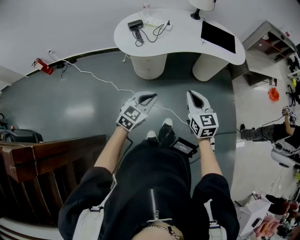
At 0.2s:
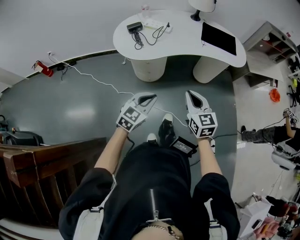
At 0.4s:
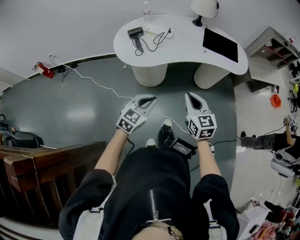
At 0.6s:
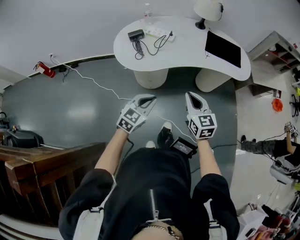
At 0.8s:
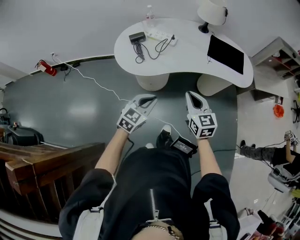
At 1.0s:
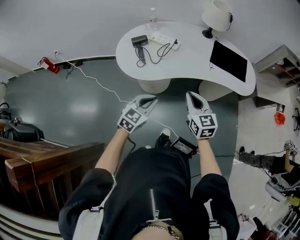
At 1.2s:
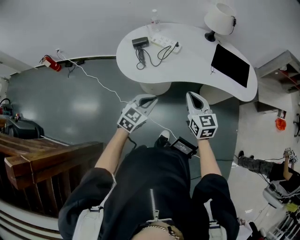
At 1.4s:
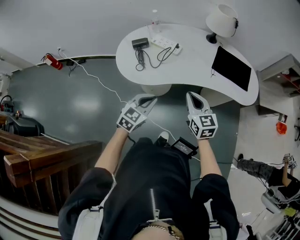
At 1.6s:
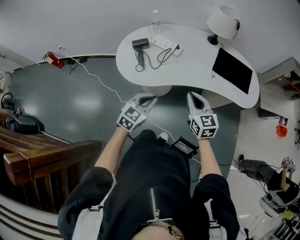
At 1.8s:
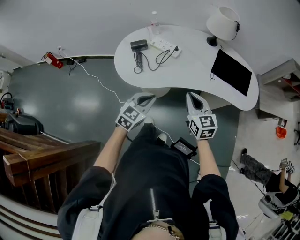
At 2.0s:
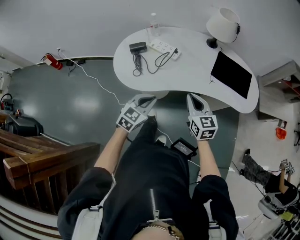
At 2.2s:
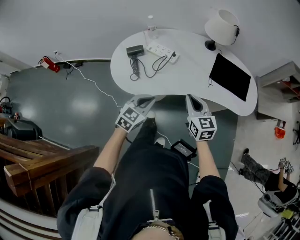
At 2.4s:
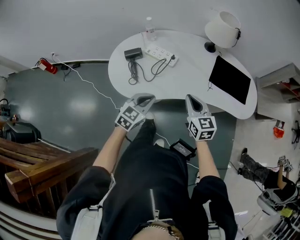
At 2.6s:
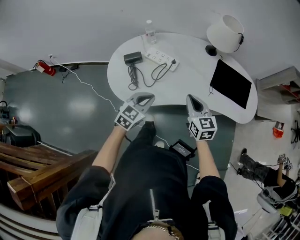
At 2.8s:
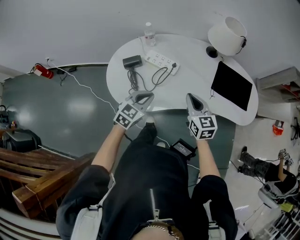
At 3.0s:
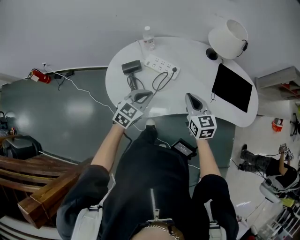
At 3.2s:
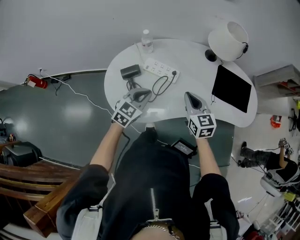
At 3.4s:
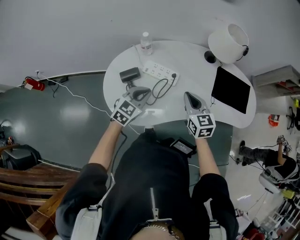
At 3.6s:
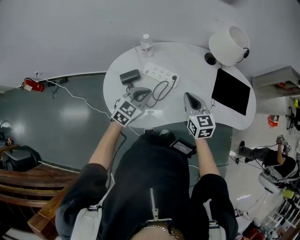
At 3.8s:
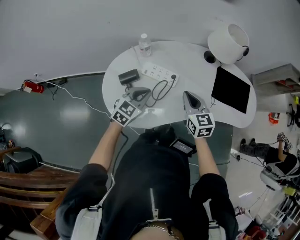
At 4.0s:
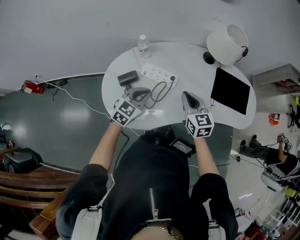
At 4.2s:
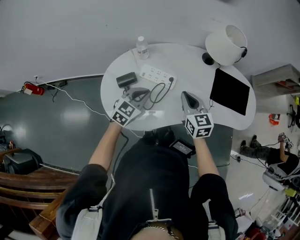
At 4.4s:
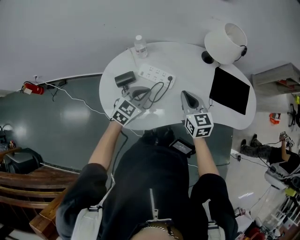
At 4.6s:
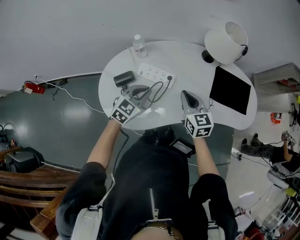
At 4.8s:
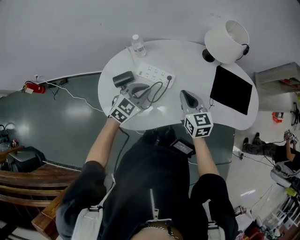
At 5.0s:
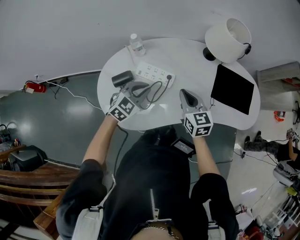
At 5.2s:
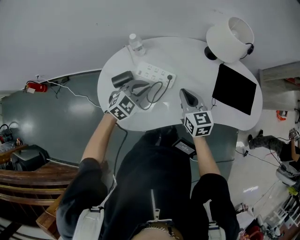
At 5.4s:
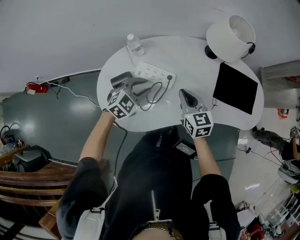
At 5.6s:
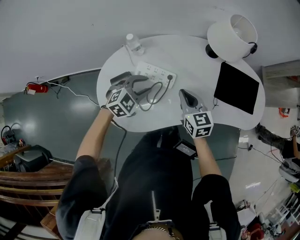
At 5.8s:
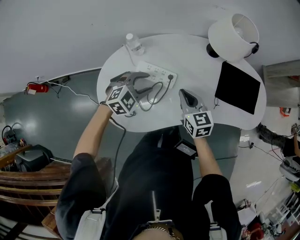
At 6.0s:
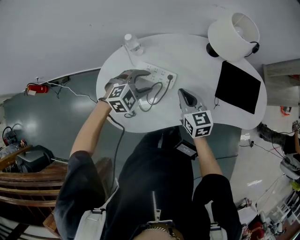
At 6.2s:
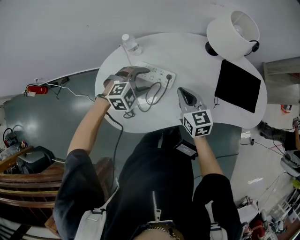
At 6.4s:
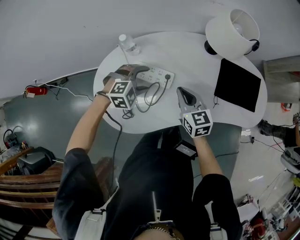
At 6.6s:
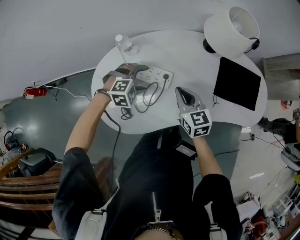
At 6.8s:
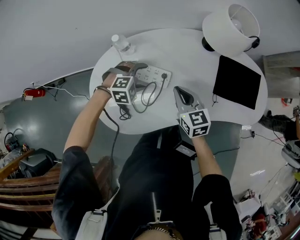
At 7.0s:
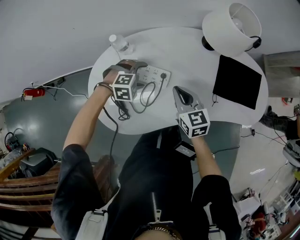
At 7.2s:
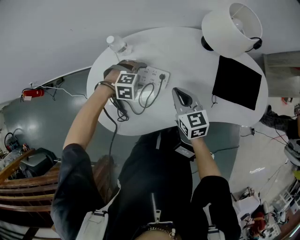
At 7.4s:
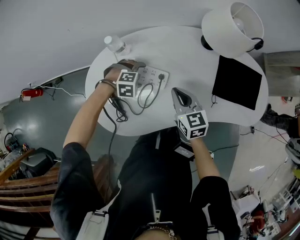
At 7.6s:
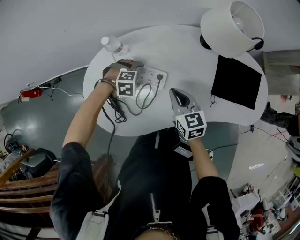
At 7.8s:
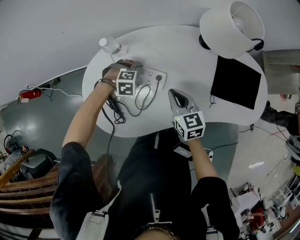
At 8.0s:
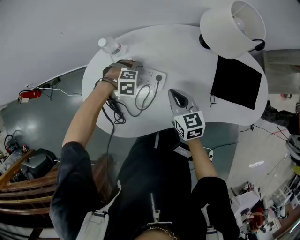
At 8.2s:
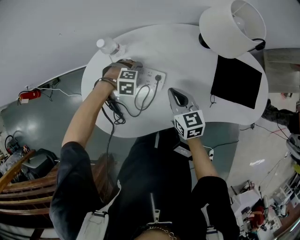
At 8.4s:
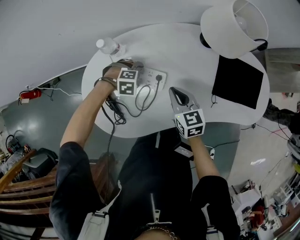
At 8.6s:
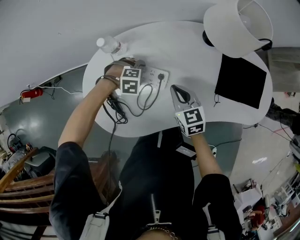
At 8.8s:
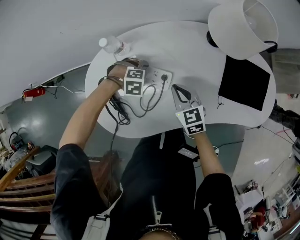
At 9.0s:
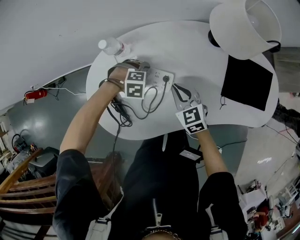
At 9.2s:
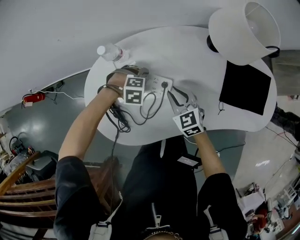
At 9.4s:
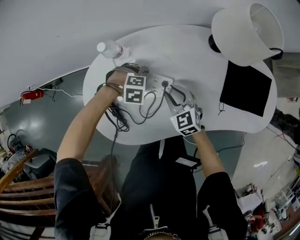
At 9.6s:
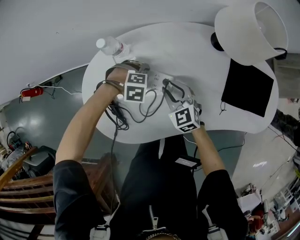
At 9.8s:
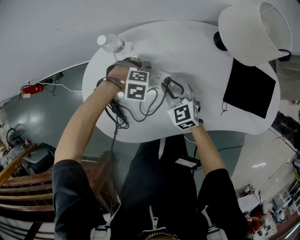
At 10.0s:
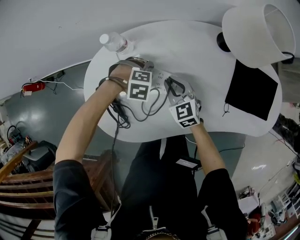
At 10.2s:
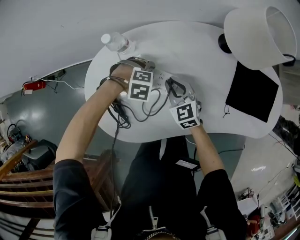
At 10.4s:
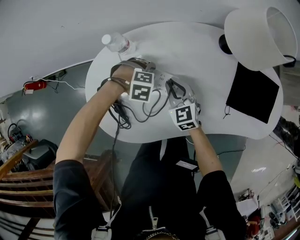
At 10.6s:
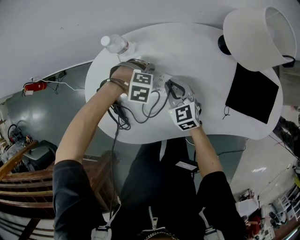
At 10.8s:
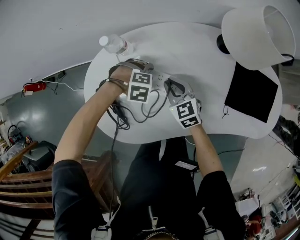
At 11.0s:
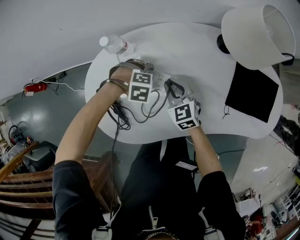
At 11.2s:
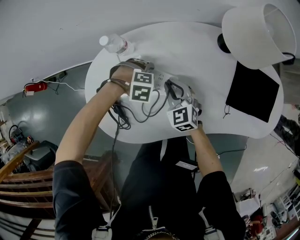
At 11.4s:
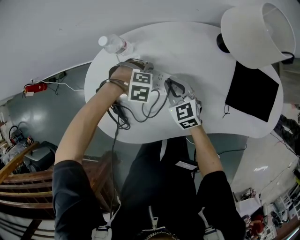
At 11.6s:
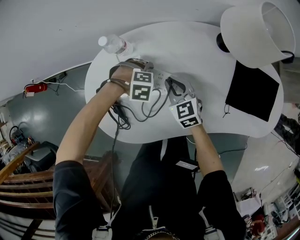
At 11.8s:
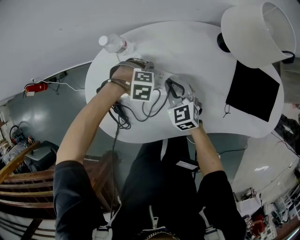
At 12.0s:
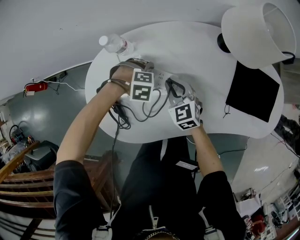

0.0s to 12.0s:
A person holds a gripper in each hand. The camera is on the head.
0.0s to 1.6s: Both grippers move forward, about 25 cm.
1.6s to 3.0s: Both grippers move forward, roughly 20 cm.
3.0s to 4.4s: Both grippers move forward, roughly 10 cm.
4.4s to 6.0s: The left gripper heads forward, covering approximately 5 cm, rotates roughly 40 degrees, and opens its fingers. Meanwhile the right gripper shifts by about 5 cm.
6.0s to 7.6s: The right gripper moves some 5 cm, while the left gripper moves downward, some 15 cm, and turns by some 30 degrees.
7.6s to 9.0s: The right gripper is displaced downward by some 5 cm.
9.0s to 10.4s: The right gripper ends up some 5 cm from where it was.
10.4s to 12.0s: The grippers make only small movements.

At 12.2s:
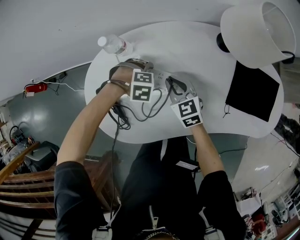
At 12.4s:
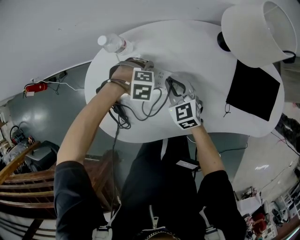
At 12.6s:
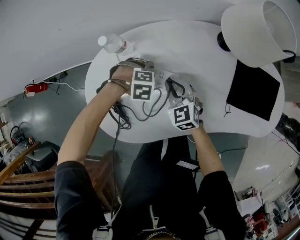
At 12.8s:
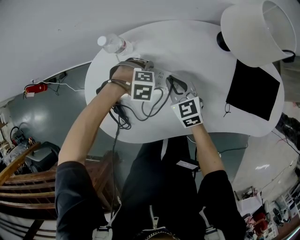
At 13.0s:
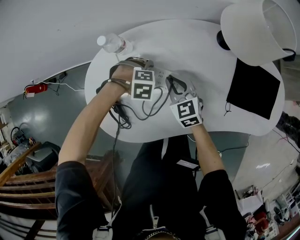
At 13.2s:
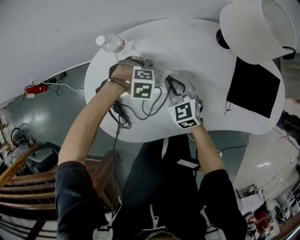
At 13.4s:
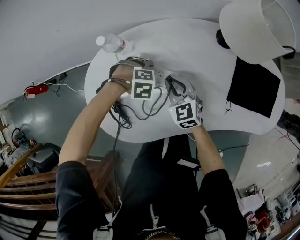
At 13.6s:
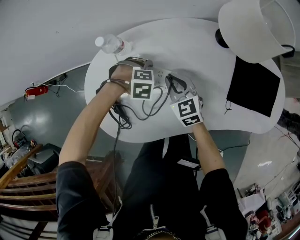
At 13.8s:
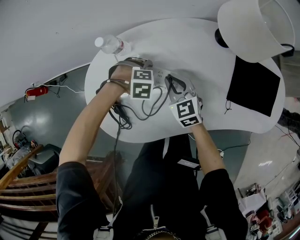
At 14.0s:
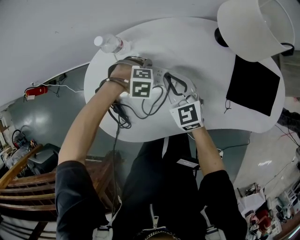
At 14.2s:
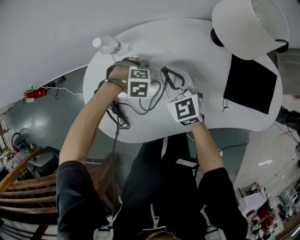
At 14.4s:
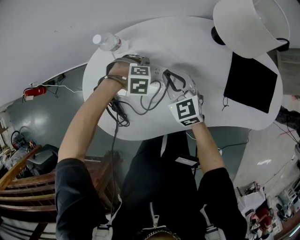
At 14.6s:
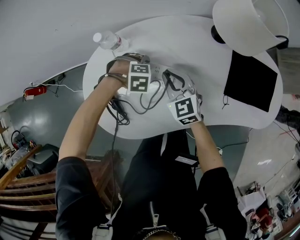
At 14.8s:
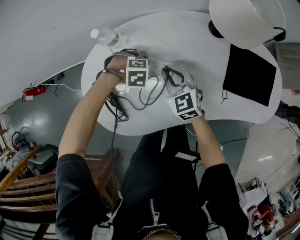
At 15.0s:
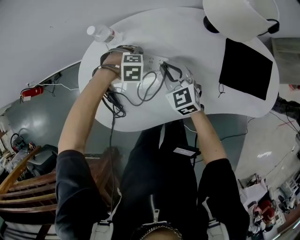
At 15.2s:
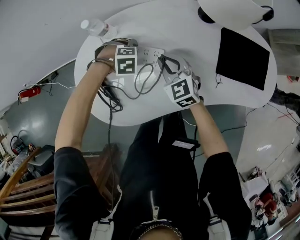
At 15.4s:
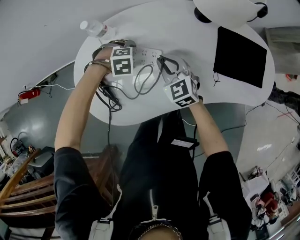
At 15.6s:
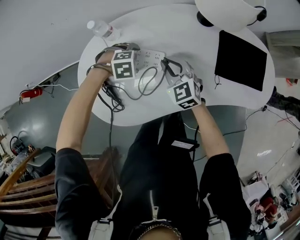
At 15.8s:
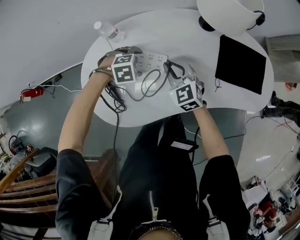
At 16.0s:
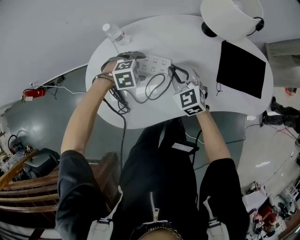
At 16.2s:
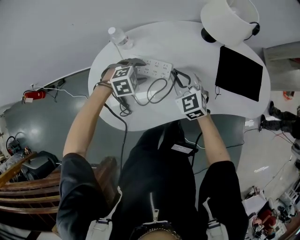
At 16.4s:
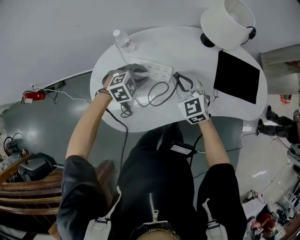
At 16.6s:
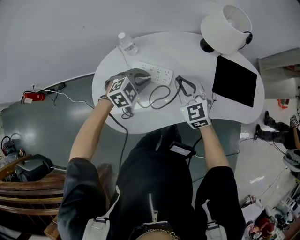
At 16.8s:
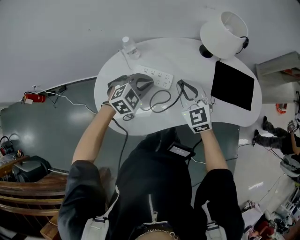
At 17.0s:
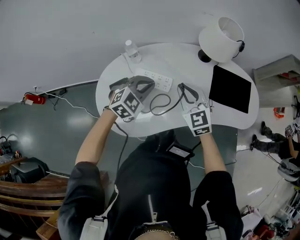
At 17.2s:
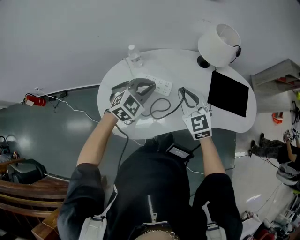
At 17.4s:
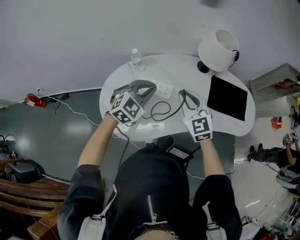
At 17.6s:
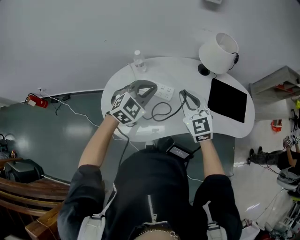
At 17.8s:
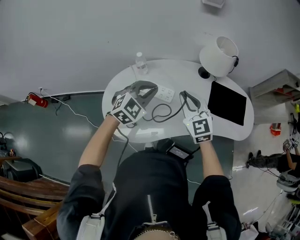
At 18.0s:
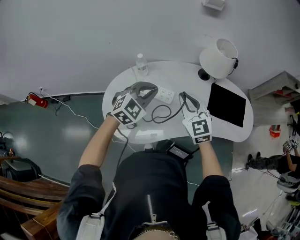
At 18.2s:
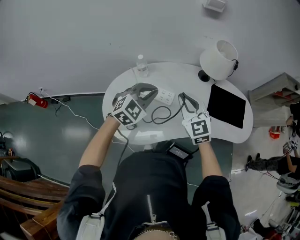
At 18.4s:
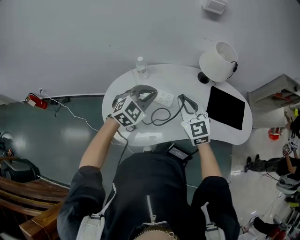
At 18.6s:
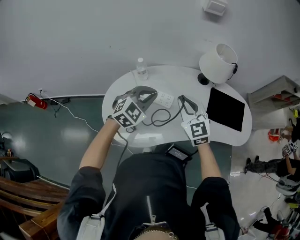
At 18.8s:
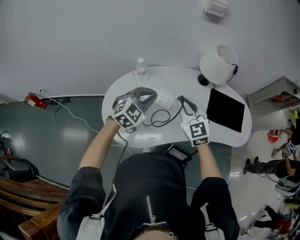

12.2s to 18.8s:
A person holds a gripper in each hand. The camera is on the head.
12.2s to 13.8s: The grippers stay close to where they were, moving slightly.
13.8s to 15.4s: The right gripper shifts by about 5 cm.
15.4s to 17.2s: The grippers both shift upward by some 20 cm. The left gripper angles its fingers upward, by roughly 50 degrees, and closes its fingers.
17.2s to 18.8s: The grippers make only small movements.

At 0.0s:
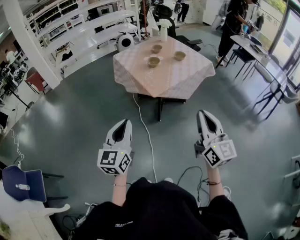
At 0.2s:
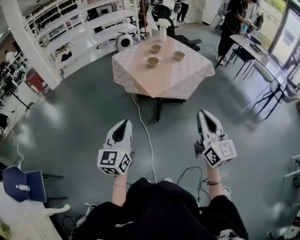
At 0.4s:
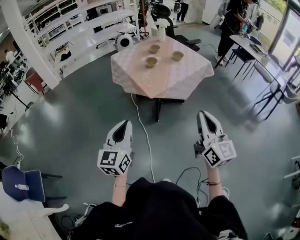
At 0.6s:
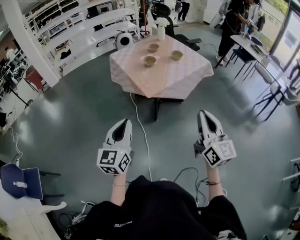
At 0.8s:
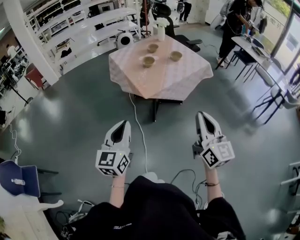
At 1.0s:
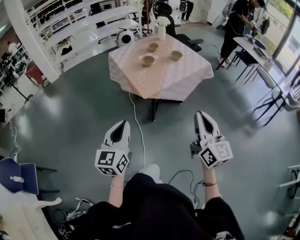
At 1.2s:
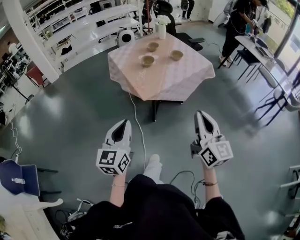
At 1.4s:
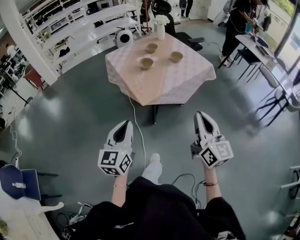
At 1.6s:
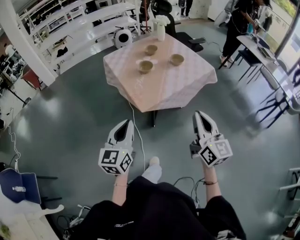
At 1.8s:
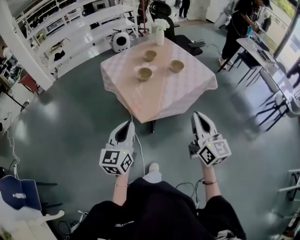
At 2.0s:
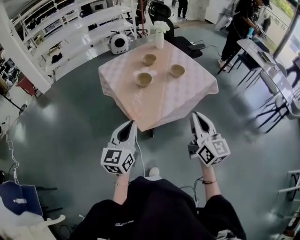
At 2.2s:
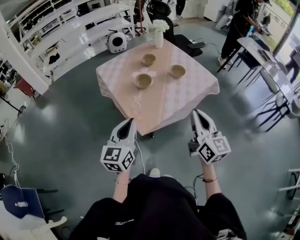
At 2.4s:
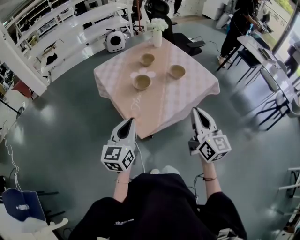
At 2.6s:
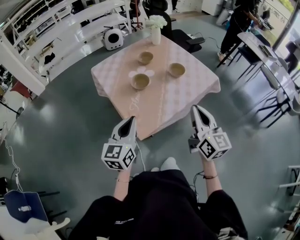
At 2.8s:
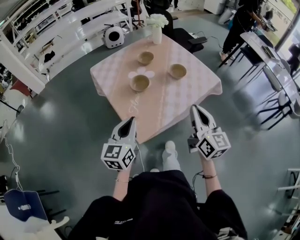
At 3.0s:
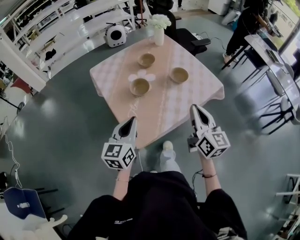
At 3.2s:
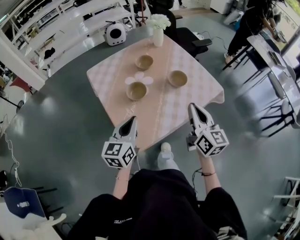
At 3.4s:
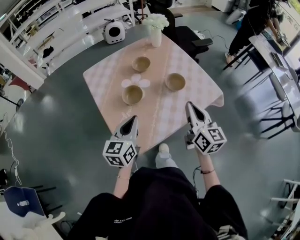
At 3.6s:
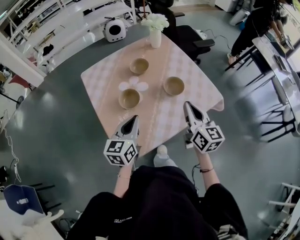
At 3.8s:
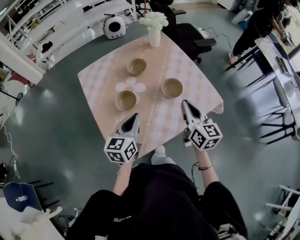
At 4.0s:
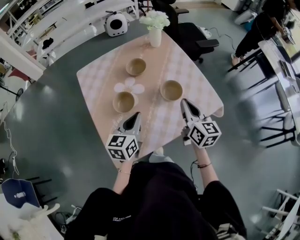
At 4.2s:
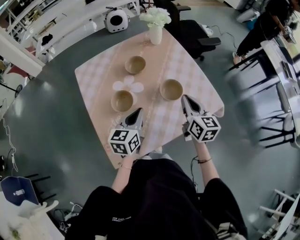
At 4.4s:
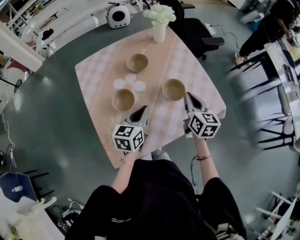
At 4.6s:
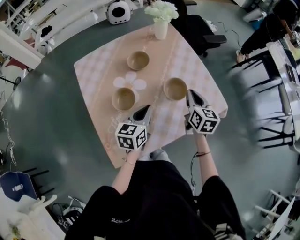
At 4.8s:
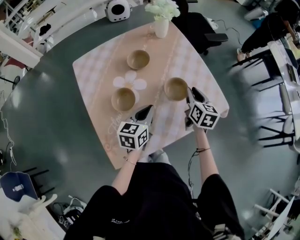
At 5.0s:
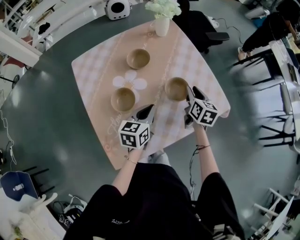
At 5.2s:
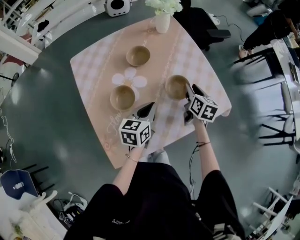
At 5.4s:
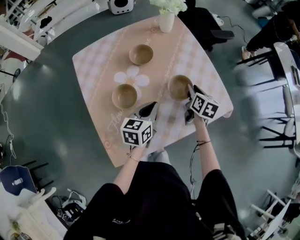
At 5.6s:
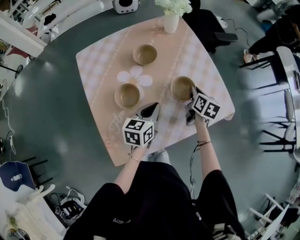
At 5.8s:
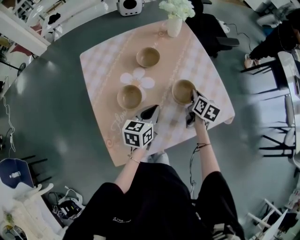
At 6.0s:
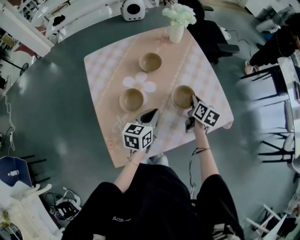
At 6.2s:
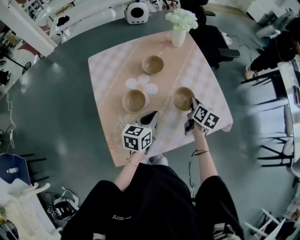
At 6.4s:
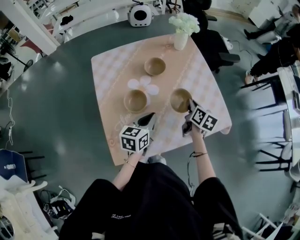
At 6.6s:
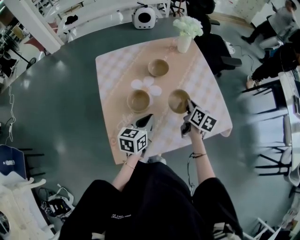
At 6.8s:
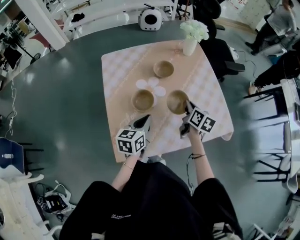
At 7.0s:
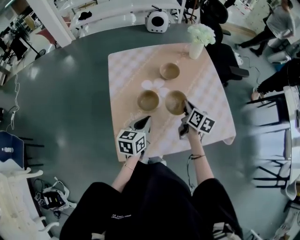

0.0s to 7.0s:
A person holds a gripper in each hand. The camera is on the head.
0.0s to 1.4s: Both grippers move forward and to the right, approximately 15 cm.
1.4s to 2.8s: Both grippers travel together forward, approximately 30 cm.
2.8s to 4.2s: The right gripper heads forward, covering approximately 25 cm, while the left gripper moves forward and to the right, roughly 25 cm.
4.2s to 5.6s: The right gripper shifts about 15 cm downward and forward, swivels about 30 degrees, and opens, then closes again. Meanwhile the left gripper goes about 5 cm downward.
5.6s to 7.0s: The left gripper is displaced to the left and backward by roughly 10 cm; the right gripper is displaced to the left and upward by about 15 cm.
